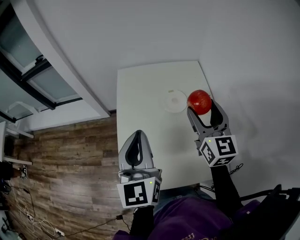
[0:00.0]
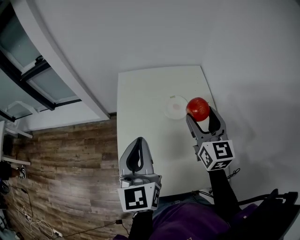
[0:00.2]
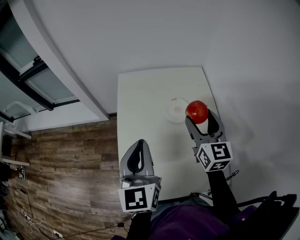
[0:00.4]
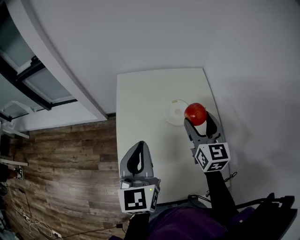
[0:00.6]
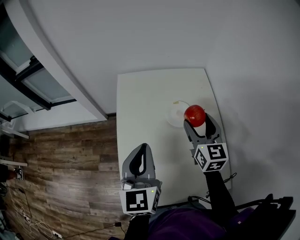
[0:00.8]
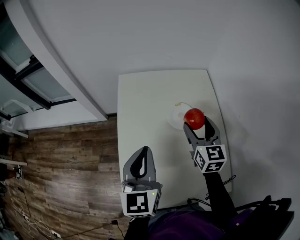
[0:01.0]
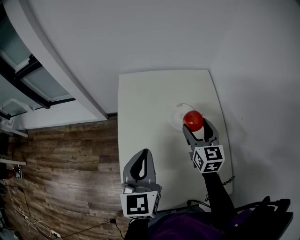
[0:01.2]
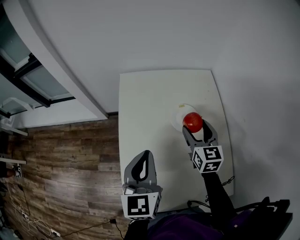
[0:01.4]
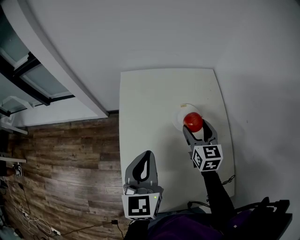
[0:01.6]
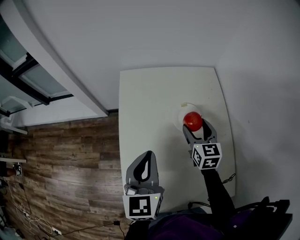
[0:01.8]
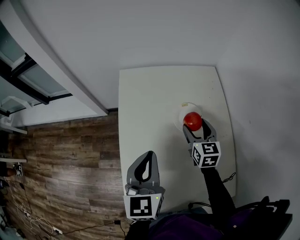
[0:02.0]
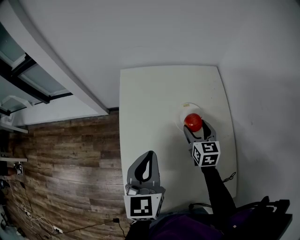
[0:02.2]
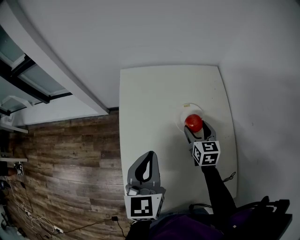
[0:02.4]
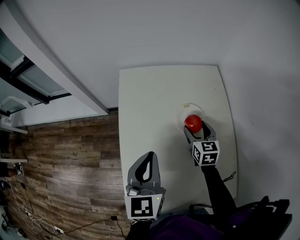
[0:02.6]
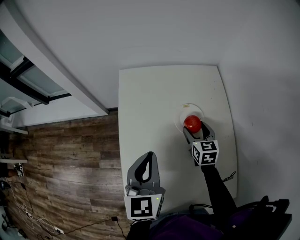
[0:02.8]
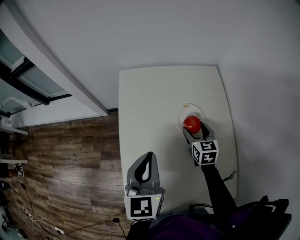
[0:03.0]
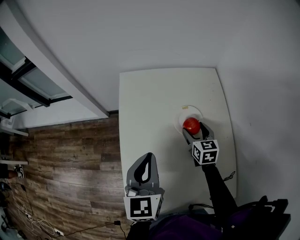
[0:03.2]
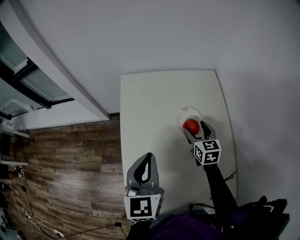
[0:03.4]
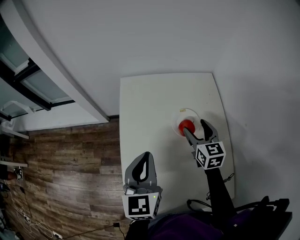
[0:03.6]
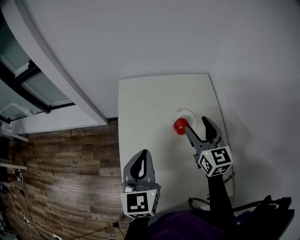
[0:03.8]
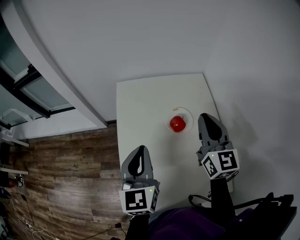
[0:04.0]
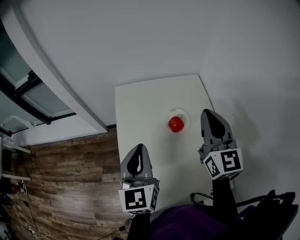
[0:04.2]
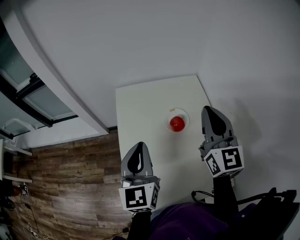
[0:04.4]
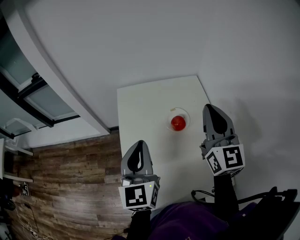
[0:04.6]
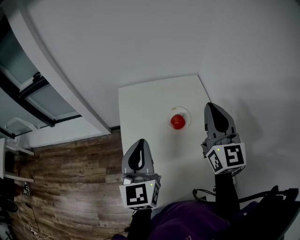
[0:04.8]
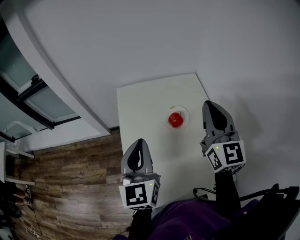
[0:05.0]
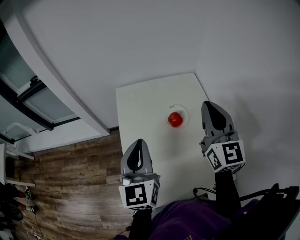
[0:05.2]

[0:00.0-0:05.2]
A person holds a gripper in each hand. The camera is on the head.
0:00.0 to 0:01.8: The right gripper travels downward and forward by approximately 25 cm, and swivels approximately 20 degrees; the left gripper moves downward and forward, approximately 15 cm.
0:03.4 to 0:05.2: The left gripper is displaced upward by some 10 cm. Meanwhile the right gripper is displaced upward by roughly 30 cm, tips its fingers upward by approximately 40 degrees, and closes.

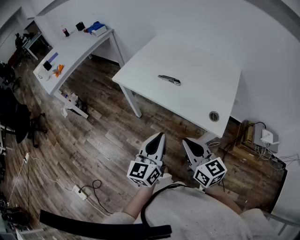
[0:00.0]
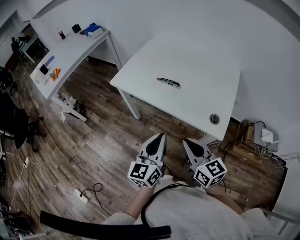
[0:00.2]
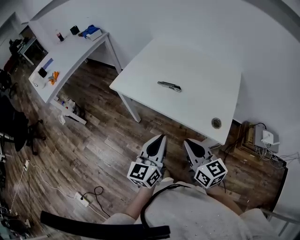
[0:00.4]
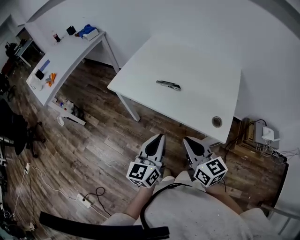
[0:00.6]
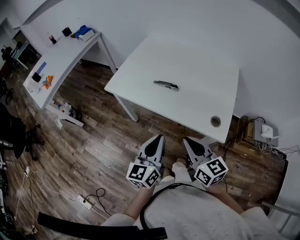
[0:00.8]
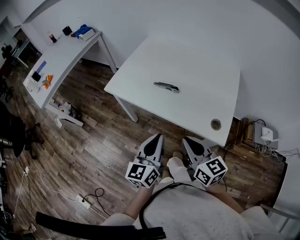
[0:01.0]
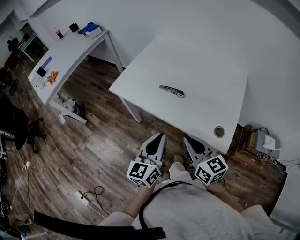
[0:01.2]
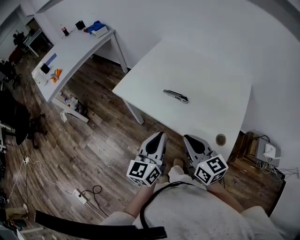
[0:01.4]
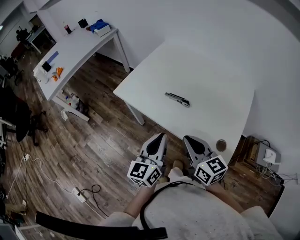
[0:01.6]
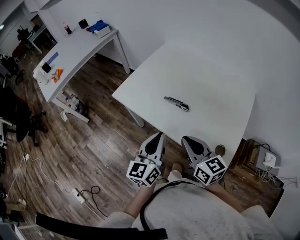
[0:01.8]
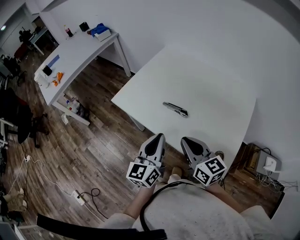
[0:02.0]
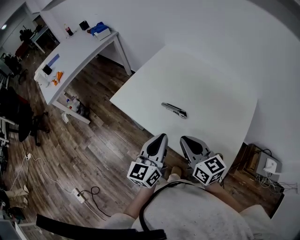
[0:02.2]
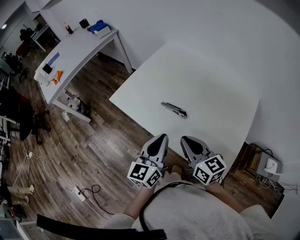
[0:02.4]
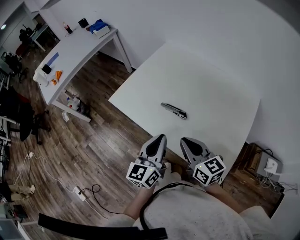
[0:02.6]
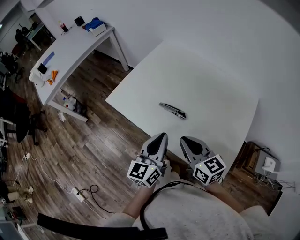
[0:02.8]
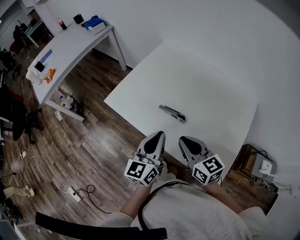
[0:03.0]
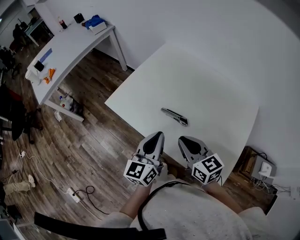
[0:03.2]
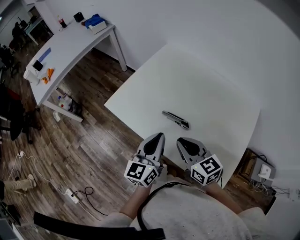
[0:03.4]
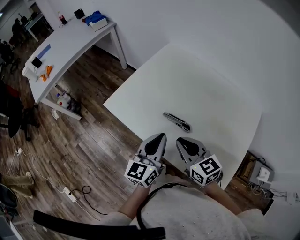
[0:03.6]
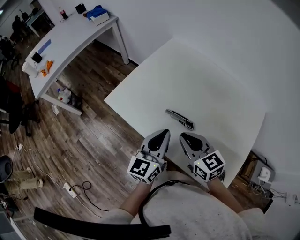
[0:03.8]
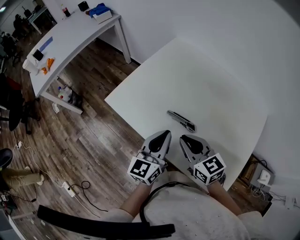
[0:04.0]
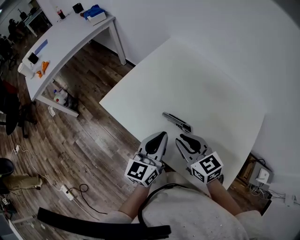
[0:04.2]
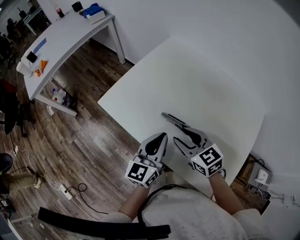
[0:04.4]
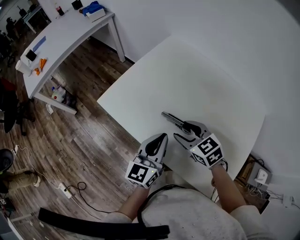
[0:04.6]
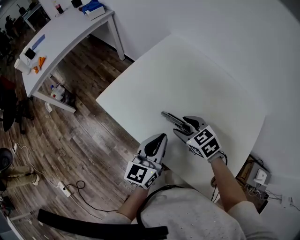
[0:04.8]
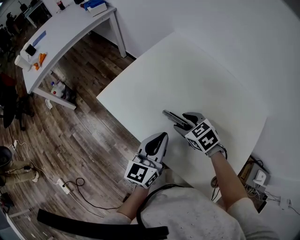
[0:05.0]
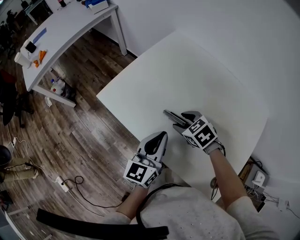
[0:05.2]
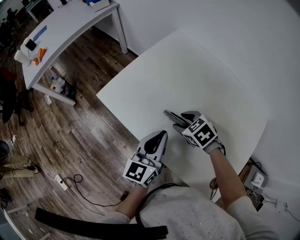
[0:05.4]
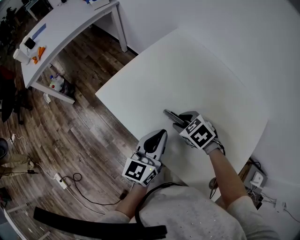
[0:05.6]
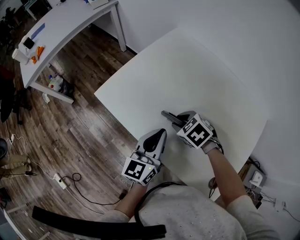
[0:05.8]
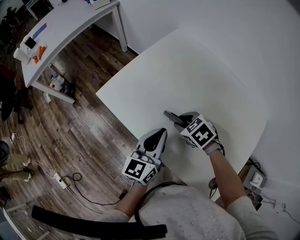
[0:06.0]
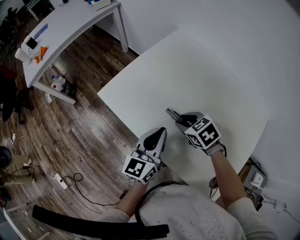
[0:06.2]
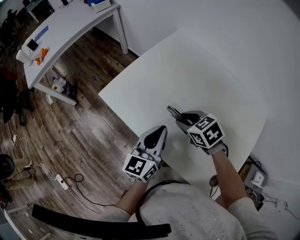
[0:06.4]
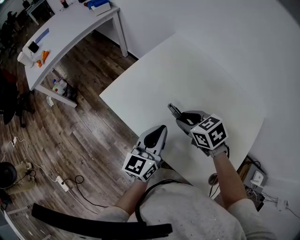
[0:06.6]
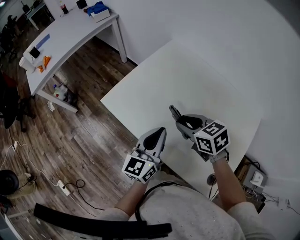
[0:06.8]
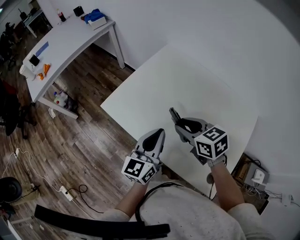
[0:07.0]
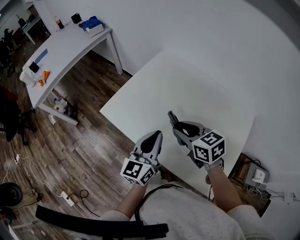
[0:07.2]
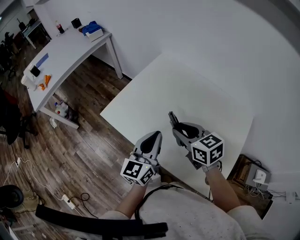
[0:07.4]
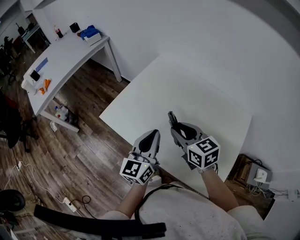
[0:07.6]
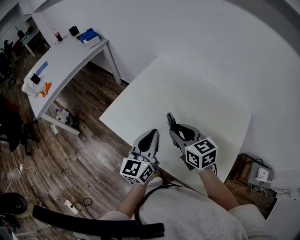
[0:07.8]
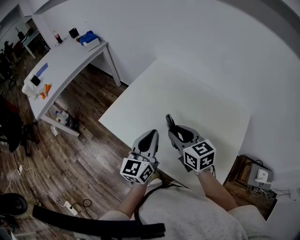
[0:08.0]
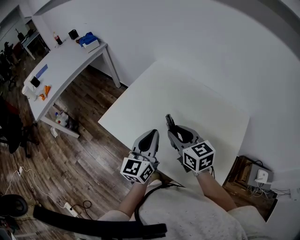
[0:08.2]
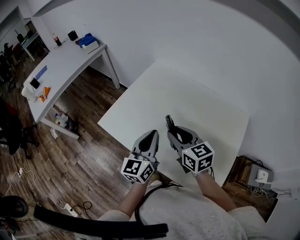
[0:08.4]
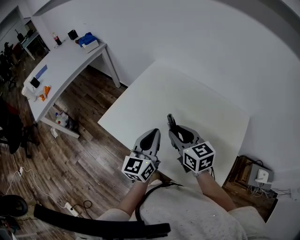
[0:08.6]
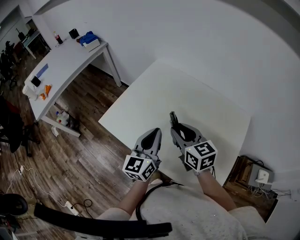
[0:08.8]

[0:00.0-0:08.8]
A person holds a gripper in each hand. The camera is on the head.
0:00.0 to 0:01.4: The two grippers go some 15 cm forward.
0:01.4 to 0:03.0: Both grippers travel together forward, approximately 10 cm.
0:03.0 to 0:04.4: Both grippers travel together forward and downward, some 10 cm. The right gripper changes its angle by roughly 20 degrees, and opens up.
0:04.4 to 0:05.8: The right gripper travels downward and forward by roughly 10 cm, and tips its fingers downward by about 30 degrees.
0:05.8 to 0:07.4: The left gripper travels upward by approximately 10 cm, while the right gripper moves upward, some 15 cm, and tips its fingers upward by some 40 degrees.
0:07.4 to 0:08.8: The grippers move only a little.

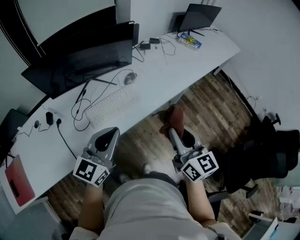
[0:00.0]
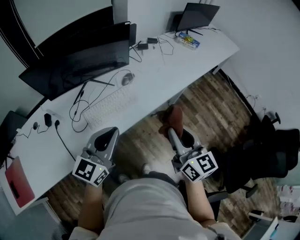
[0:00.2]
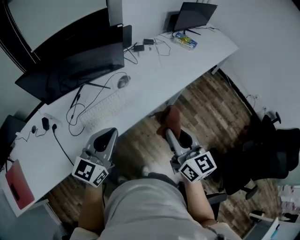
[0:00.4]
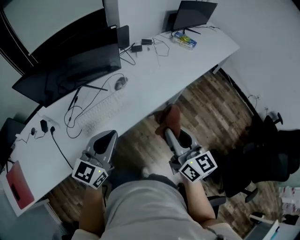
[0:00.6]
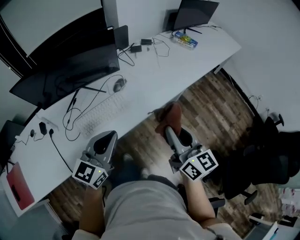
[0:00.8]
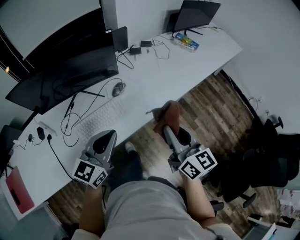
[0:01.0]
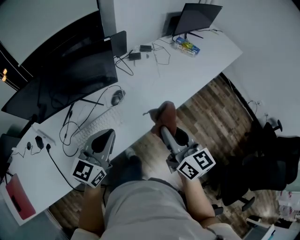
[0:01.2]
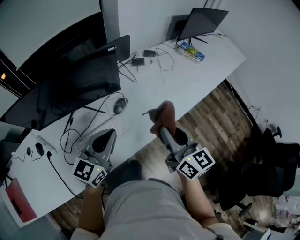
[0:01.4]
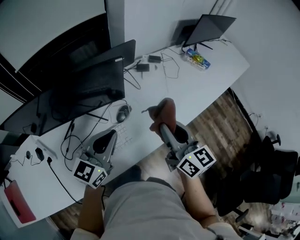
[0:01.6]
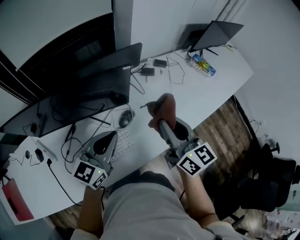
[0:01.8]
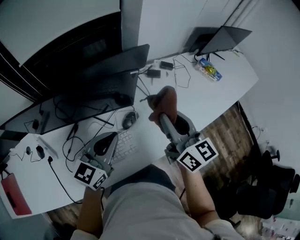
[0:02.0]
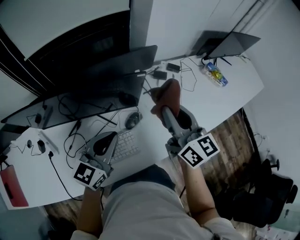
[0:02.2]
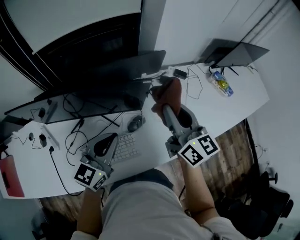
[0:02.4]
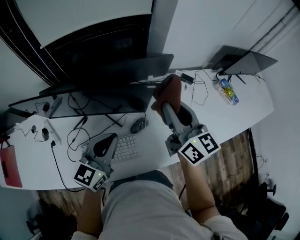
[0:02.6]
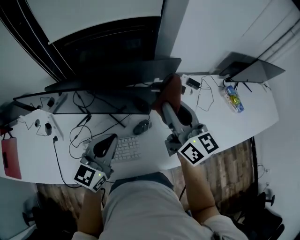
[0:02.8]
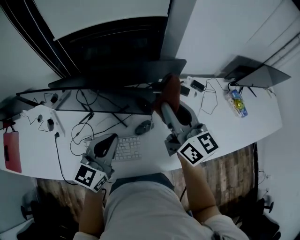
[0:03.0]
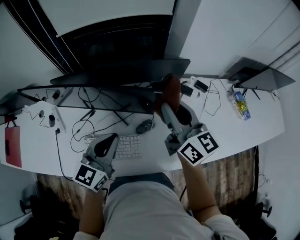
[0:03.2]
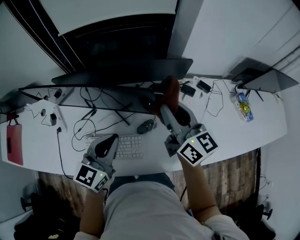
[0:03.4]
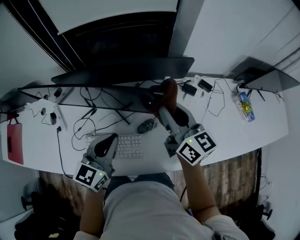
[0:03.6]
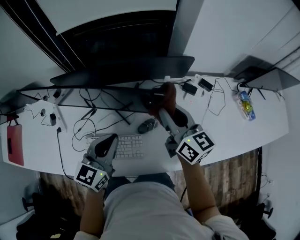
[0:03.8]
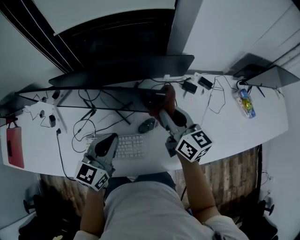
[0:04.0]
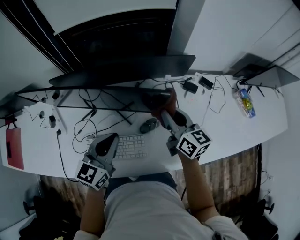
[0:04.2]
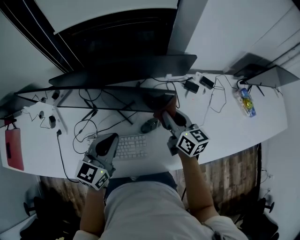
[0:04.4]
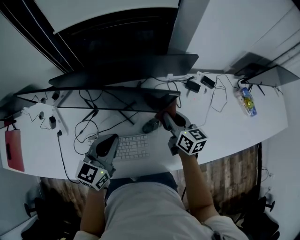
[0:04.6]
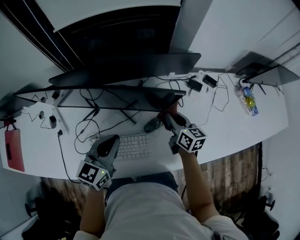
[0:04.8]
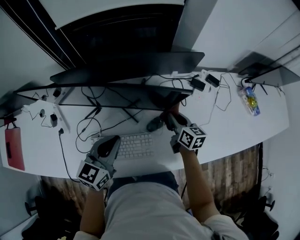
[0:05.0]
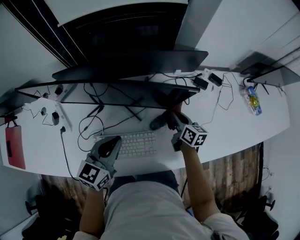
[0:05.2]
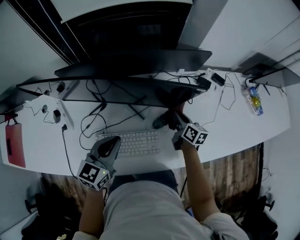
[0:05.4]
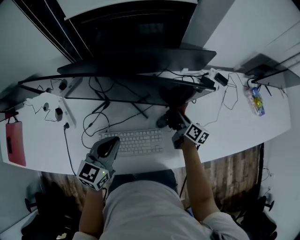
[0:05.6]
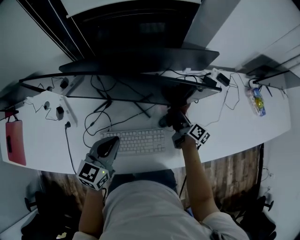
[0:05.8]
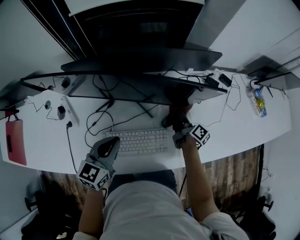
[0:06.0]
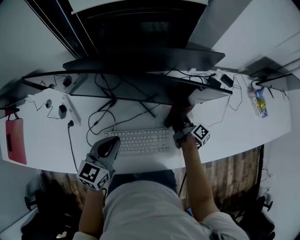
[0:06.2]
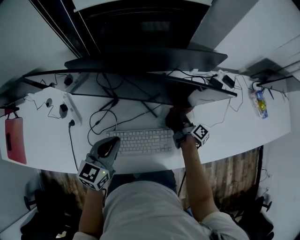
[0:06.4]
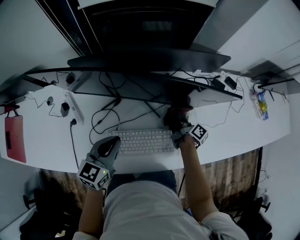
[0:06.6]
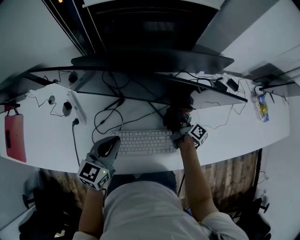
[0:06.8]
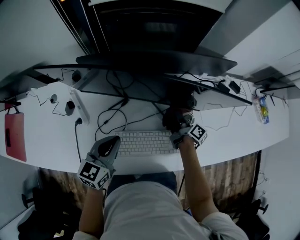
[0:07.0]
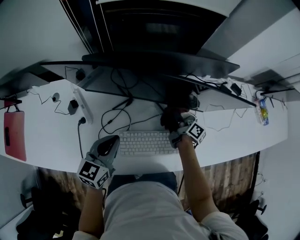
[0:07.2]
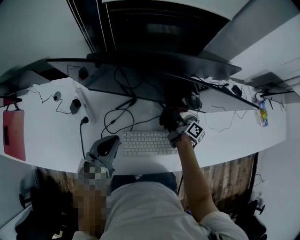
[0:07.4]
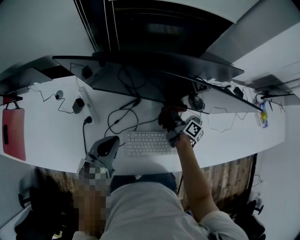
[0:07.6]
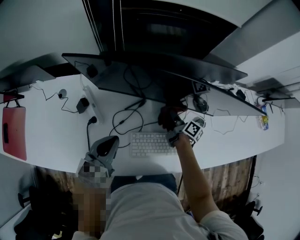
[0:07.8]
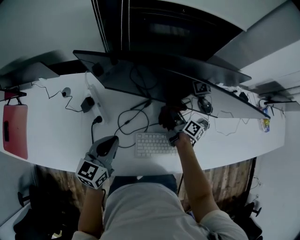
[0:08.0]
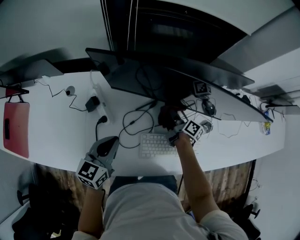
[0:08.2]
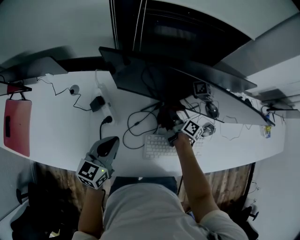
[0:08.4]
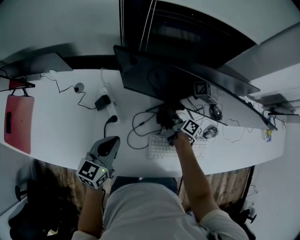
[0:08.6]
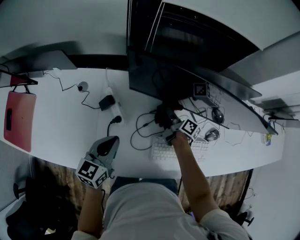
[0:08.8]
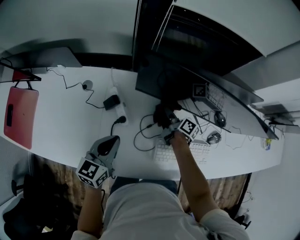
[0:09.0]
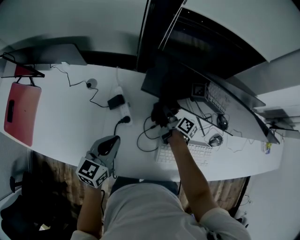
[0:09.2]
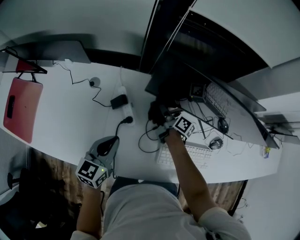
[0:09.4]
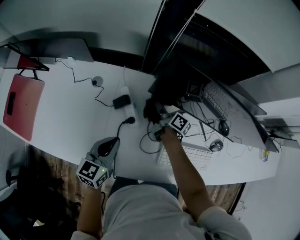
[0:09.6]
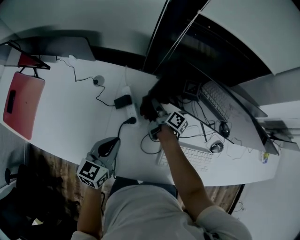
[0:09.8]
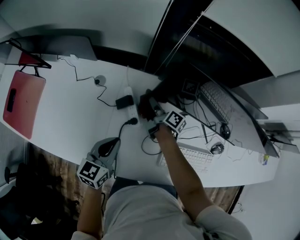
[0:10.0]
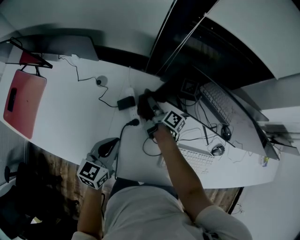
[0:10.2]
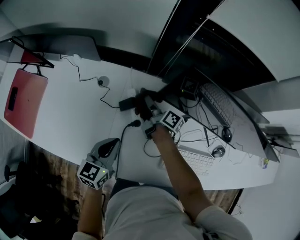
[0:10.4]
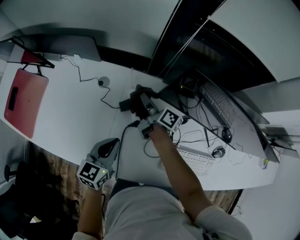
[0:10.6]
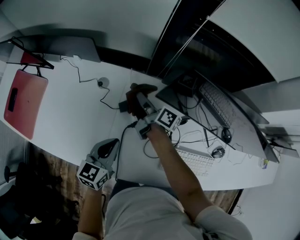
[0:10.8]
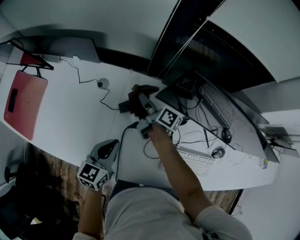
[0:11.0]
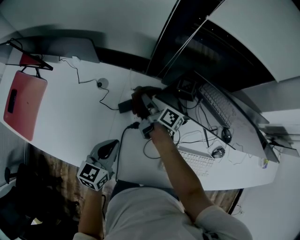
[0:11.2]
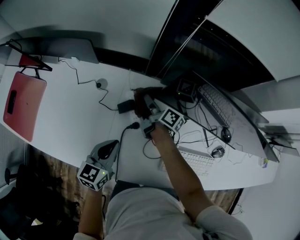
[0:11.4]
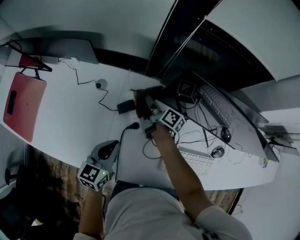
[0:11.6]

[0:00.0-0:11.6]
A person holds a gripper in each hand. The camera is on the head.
0:00.0 to 0:01.4: Both grippers move forward, some 25 cm.
0:01.4 to 0:02.8: The left gripper goes about 15 cm forward and to the left, and swivels about 20 degrees. The right gripper heads forward, covering approximately 25 cm, and rotates roughly 20 degrees.
0:02.8 to 0:04.4: The left gripper heads downward, covering about 5 cm; the right gripper is displaced downward by some 15 cm.
0:04.4 to 0:05.8: The left gripper moves to the left and downward, approximately 10 cm. The right gripper goes some 15 cm downward, and rotates approximately 40 degrees.
0:05.8 to 0:07.2: The two grippers go some 15 cm to the left.
0:07.2 to 0:08.8: The two grippers go about 25 cm to the left.
0:08.8 to 0:10.2: The left gripper is displaced to the left by some 10 cm, while the right gripper moves to the left, some 20 cm.
